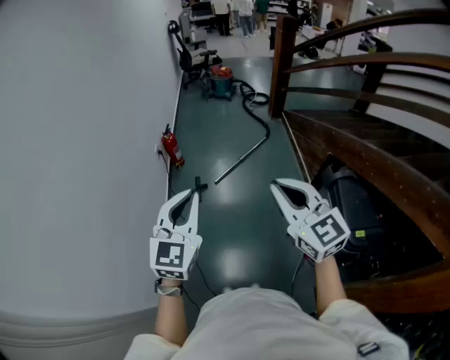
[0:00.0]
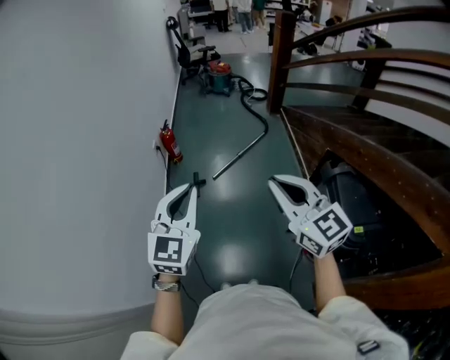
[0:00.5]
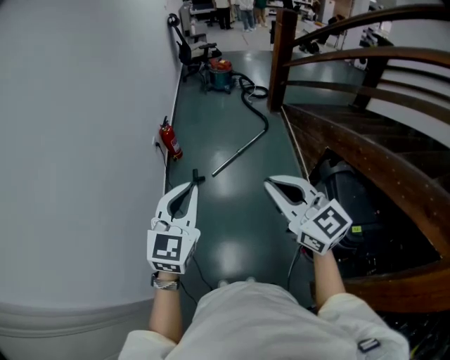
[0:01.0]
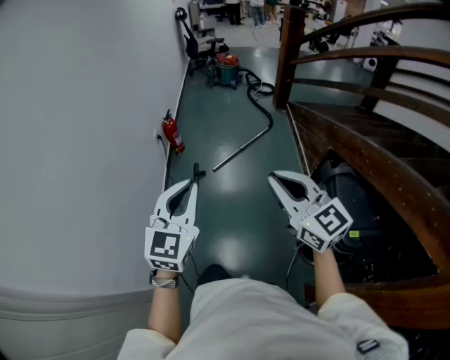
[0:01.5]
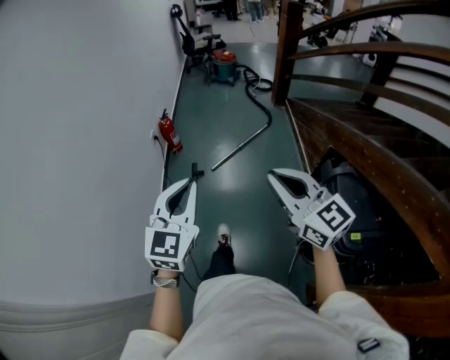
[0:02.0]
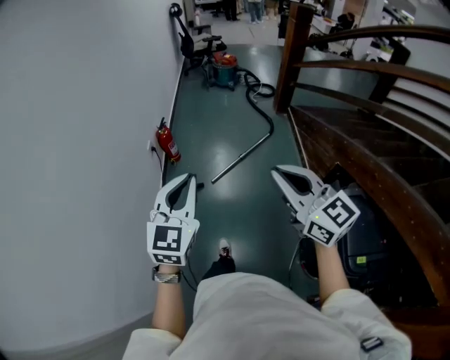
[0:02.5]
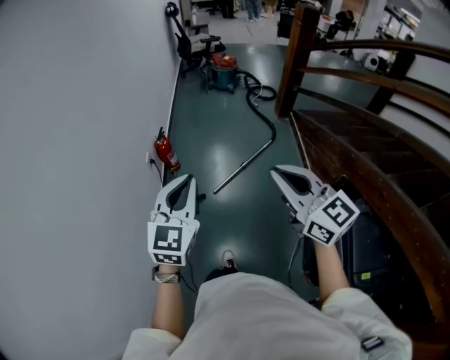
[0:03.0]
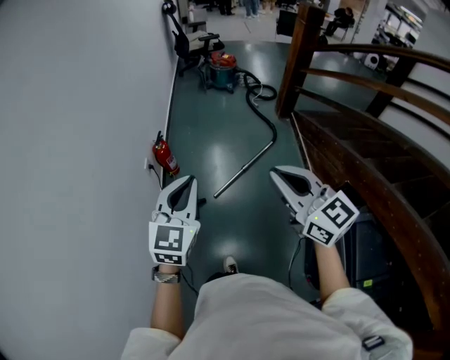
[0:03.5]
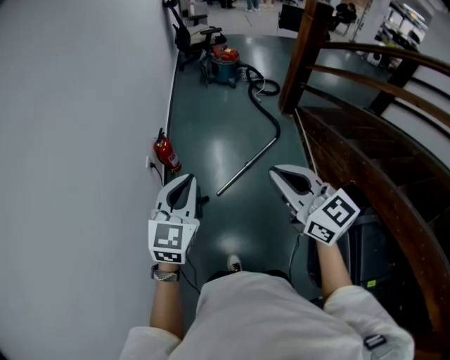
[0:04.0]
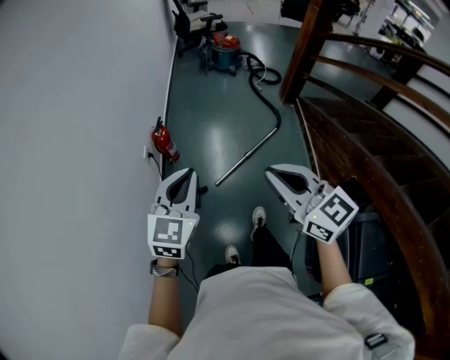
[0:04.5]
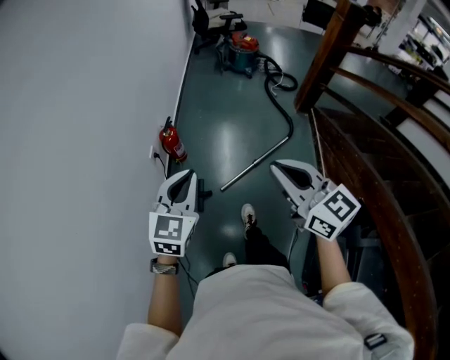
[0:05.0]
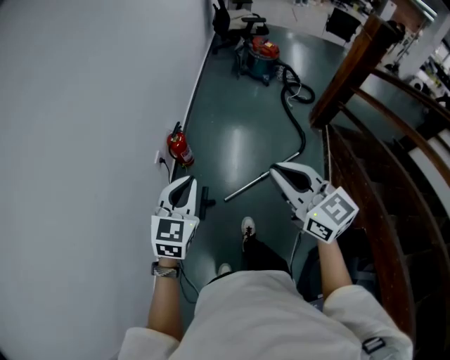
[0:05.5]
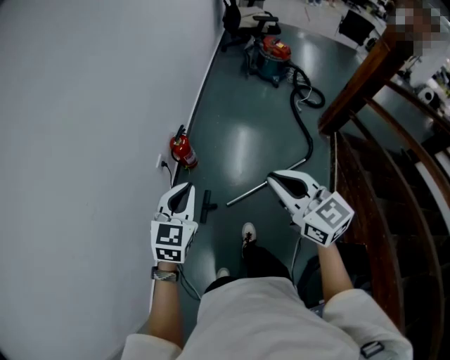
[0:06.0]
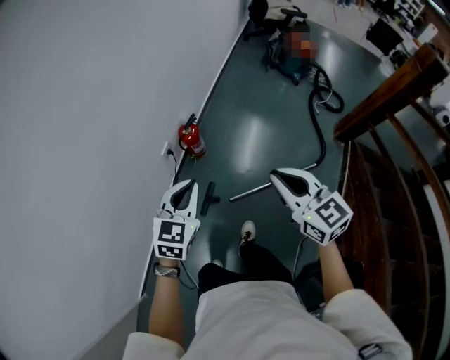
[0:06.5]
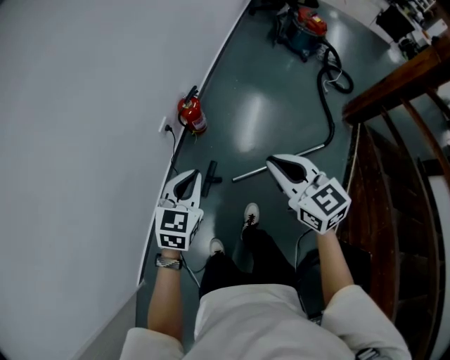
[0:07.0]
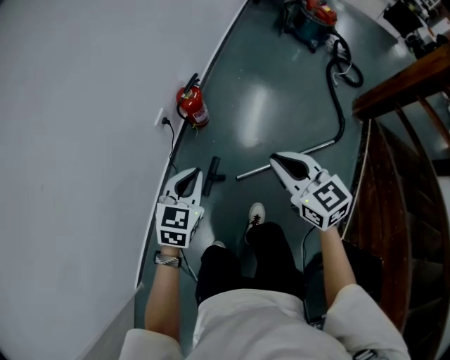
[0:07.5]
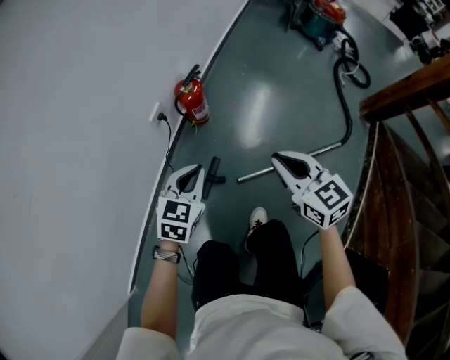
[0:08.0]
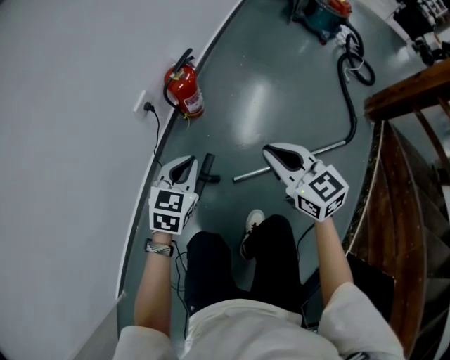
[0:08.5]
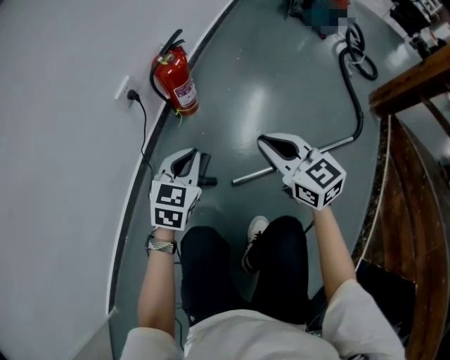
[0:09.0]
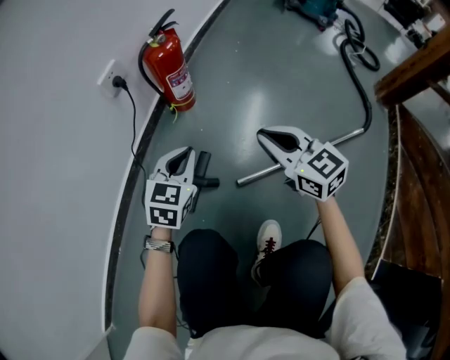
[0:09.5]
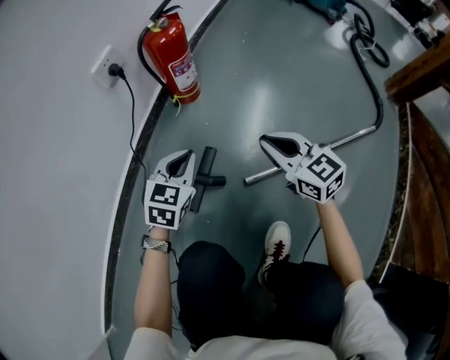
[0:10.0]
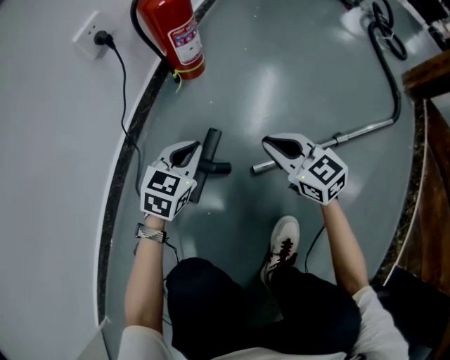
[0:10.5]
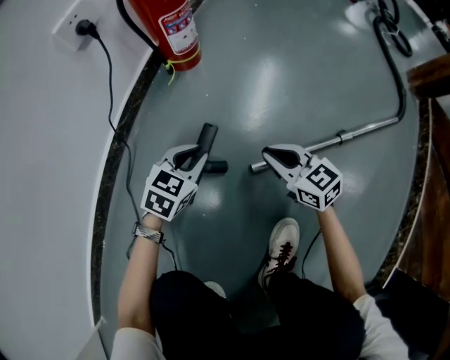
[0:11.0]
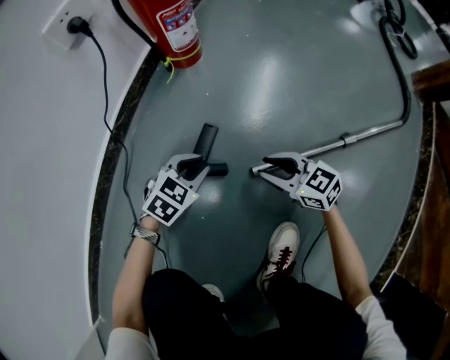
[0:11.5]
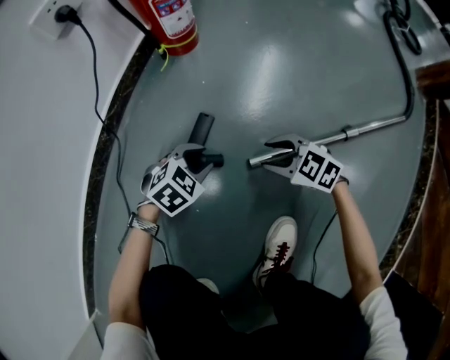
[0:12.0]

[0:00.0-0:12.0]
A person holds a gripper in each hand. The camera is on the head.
0:00.0 to 0:02.0: Both grippers travel together to the right, some 5 cm.
0:02.0 to 0:04.0: Both grippers move forward, approximately 40 cm.
0:04.0 to 0:06.0: The right gripper is displaced forward by roughly 30 cm, while the left gripper travels forward and downward by roughly 25 cm, and swivels roughly 20 degrees.
0:06.0 to 0:08.0: The two grippers go about 35 cm downward.
0:08.0 to 0:10.0: Both grippers move downward, some 40 cm.
0:10.0 to 0:12.0: Both grippers travel together downward, approximately 25 cm. The left gripper rotates approximately 40 degrees, and opens, while the right gripper swivels approximately 40 degrees, and opens up.

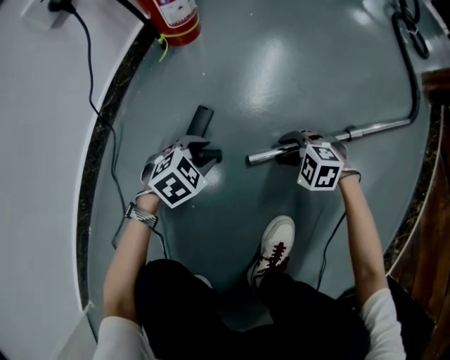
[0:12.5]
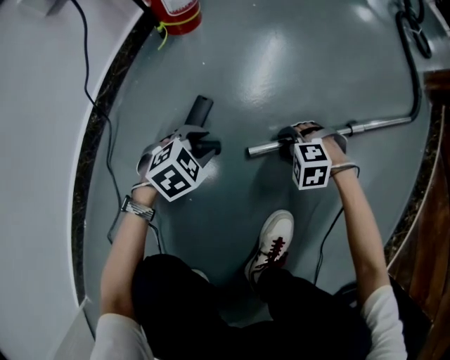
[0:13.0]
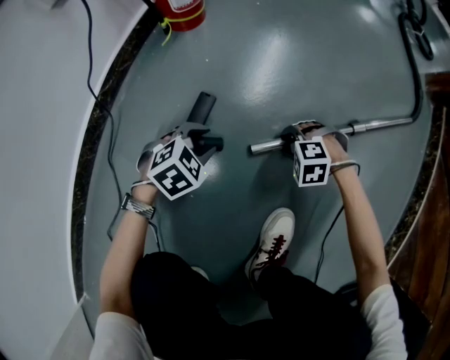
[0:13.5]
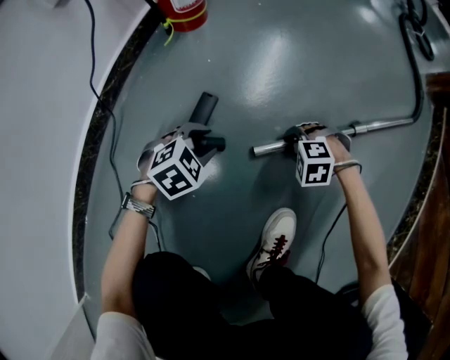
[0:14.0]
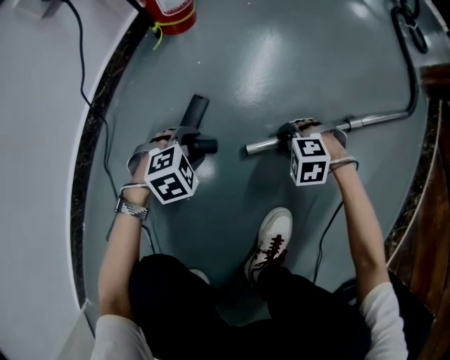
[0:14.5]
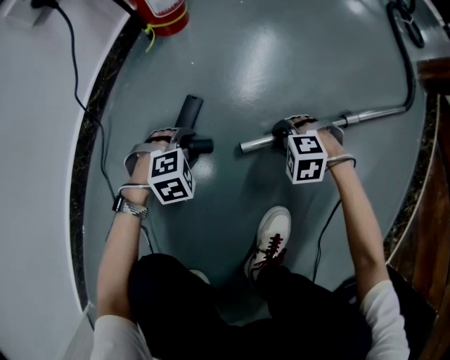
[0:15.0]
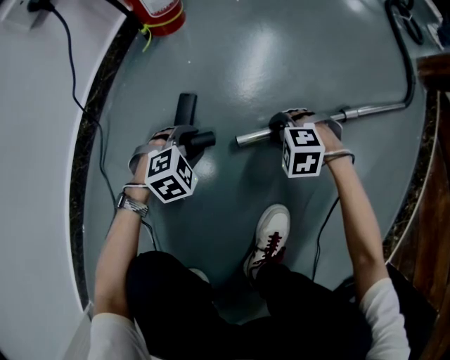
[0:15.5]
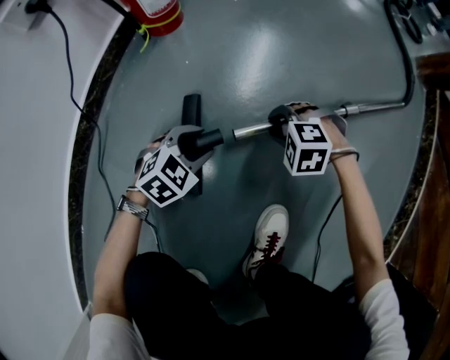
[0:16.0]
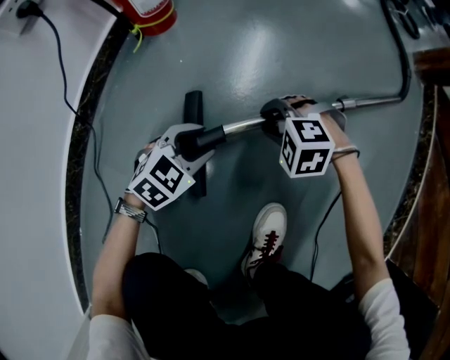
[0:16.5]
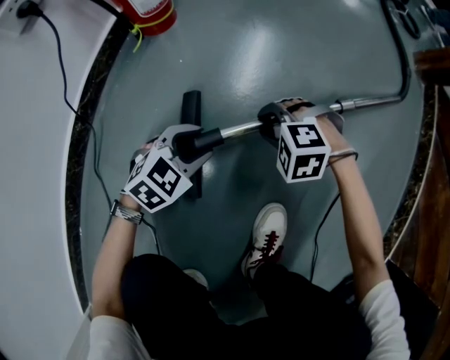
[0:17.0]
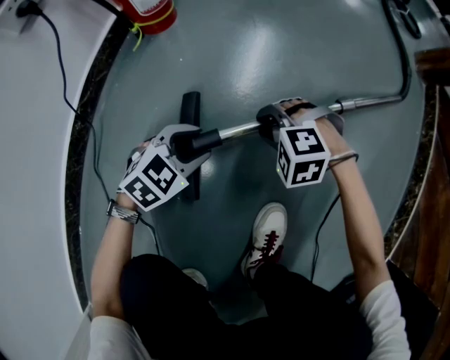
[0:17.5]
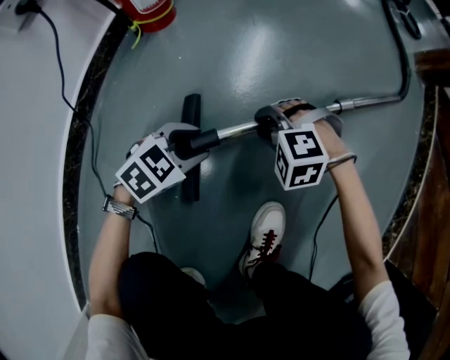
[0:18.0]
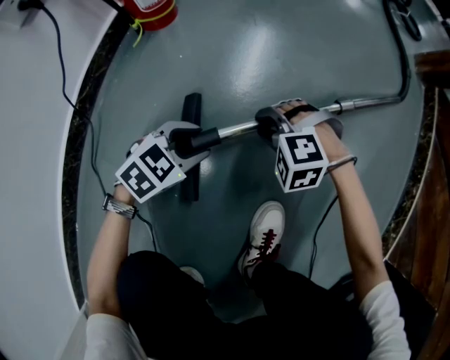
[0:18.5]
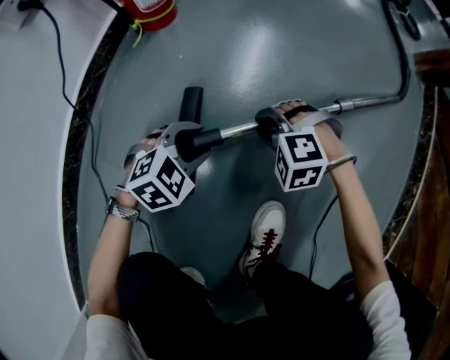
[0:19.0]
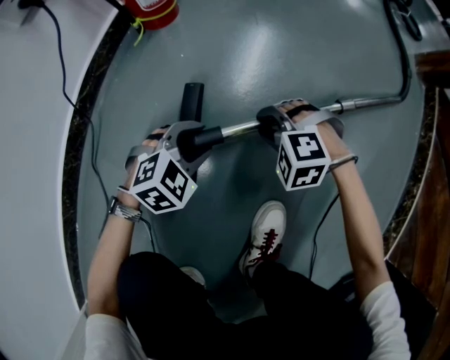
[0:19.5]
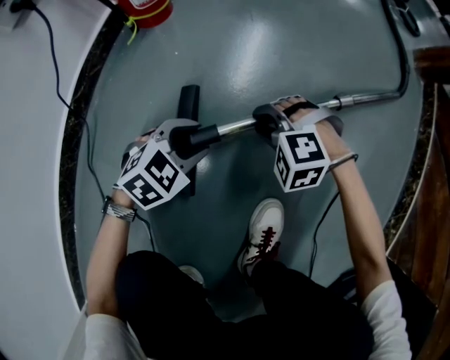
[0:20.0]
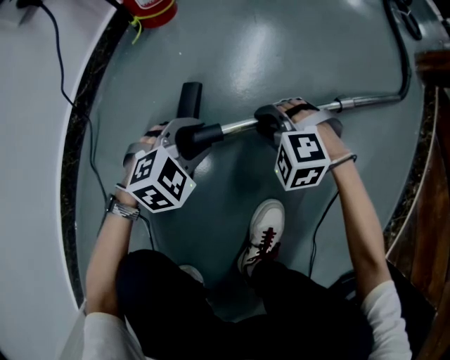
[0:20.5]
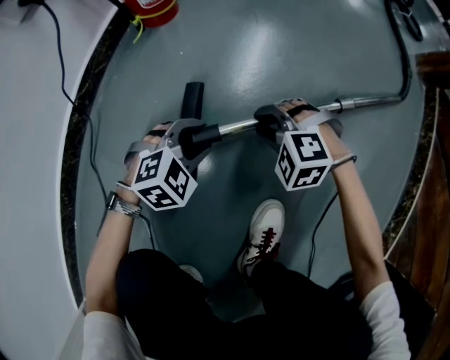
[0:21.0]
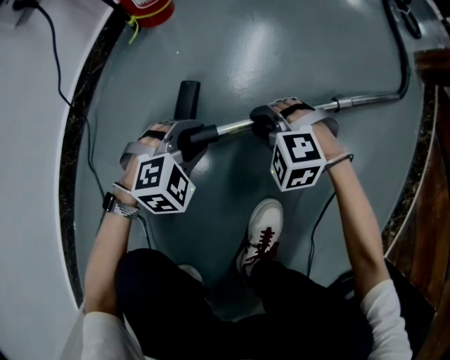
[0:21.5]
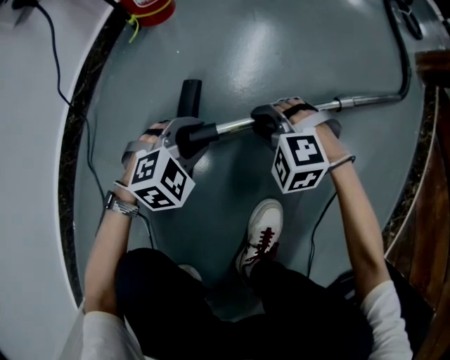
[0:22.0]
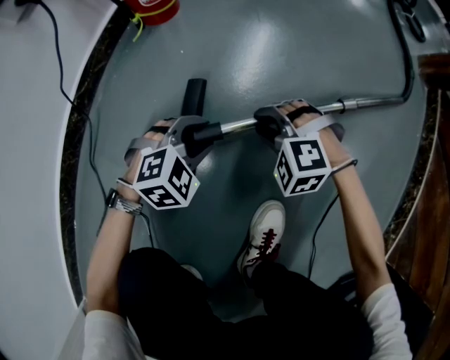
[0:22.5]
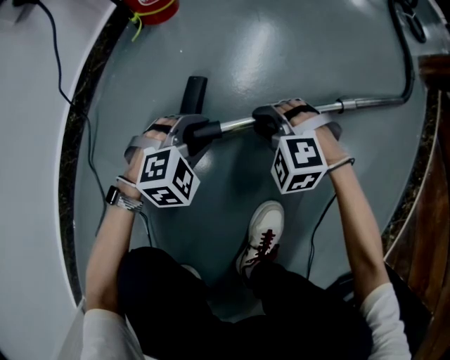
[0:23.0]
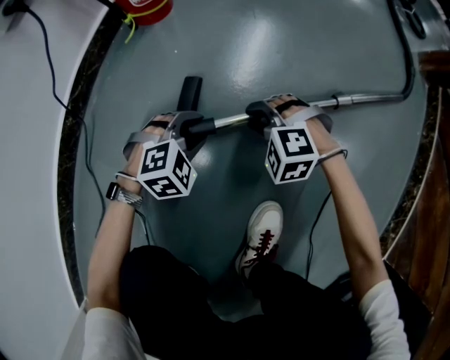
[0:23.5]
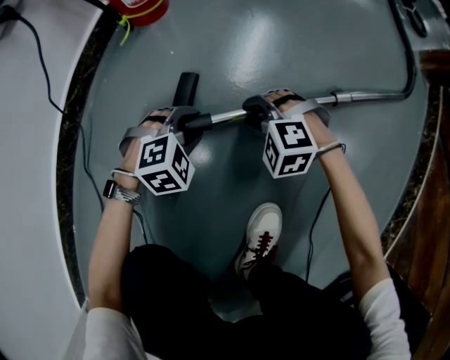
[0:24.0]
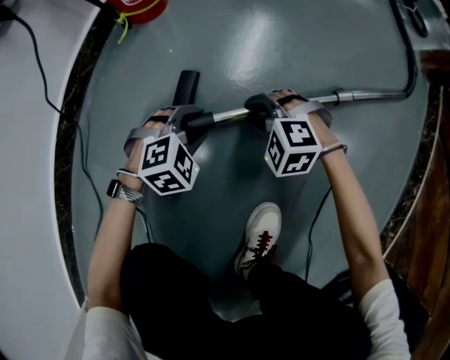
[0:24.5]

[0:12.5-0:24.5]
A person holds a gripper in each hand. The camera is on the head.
0:14.5 to 0:16.5: The right gripper travels upward by roughly 5 cm. The left gripper moves approximately 10 cm, and rotates some 30 degrees.
0:16.5 to 0:18.5: The grippers make only small movements.
0:20.5 to 0:22.5: There are only small adjustments of the grippers.
0:22.5 to 0:24.5: The left gripper ends up some 5 cm from where it was. Meanwhile the right gripper ends up approximately 5 cm from where it was.

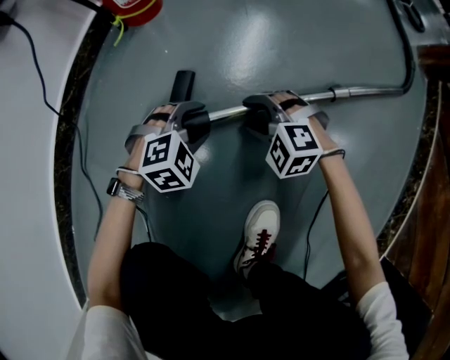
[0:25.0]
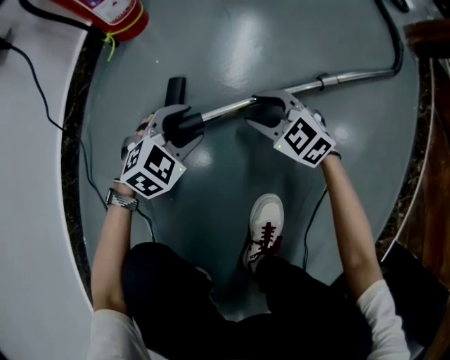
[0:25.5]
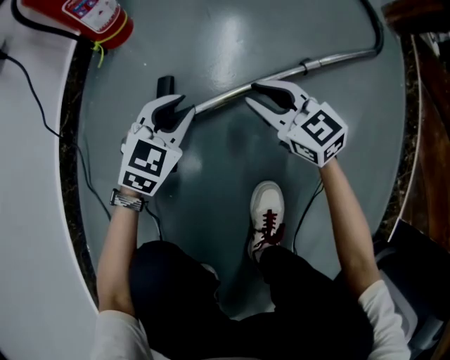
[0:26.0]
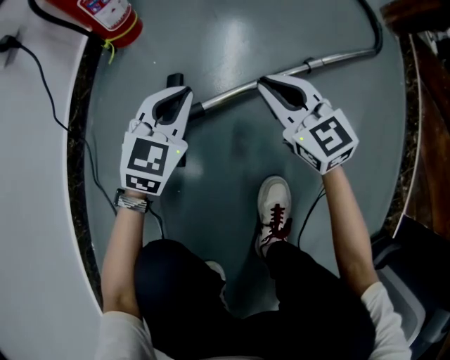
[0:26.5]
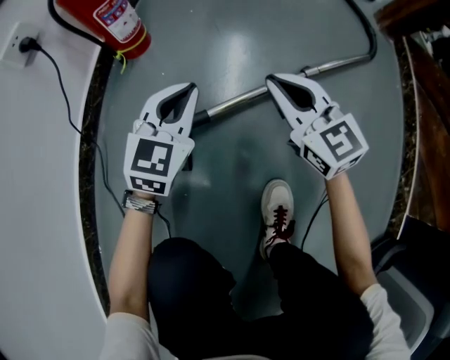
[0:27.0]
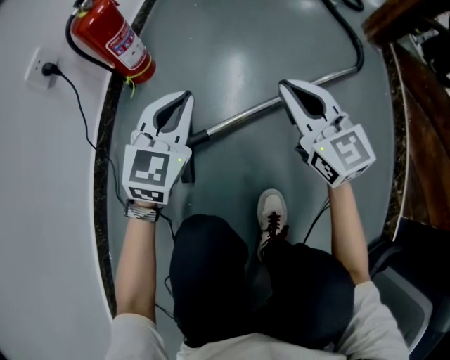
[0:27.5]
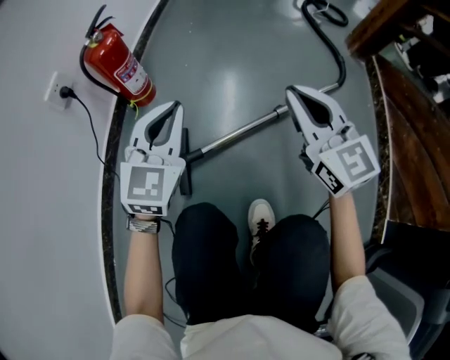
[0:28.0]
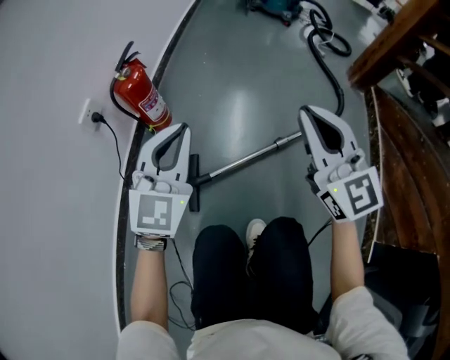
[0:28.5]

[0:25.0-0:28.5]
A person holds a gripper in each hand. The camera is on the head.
0:25.0 to 0:27.0: Both grippers travel together upward, about 20 cm. The left gripper angles its fingers upward, by about 40 degrees, and closes up, while the right gripper angles its fingers upward, by approximately 40 degrees, and closes up.
0:27.0 to 0:28.5: The grippers both shift upward by approximately 35 cm. The right gripper changes its angle by some 20 degrees.
